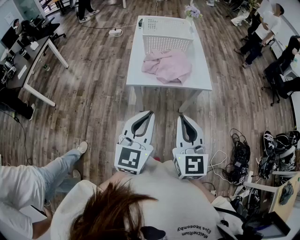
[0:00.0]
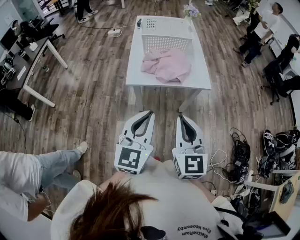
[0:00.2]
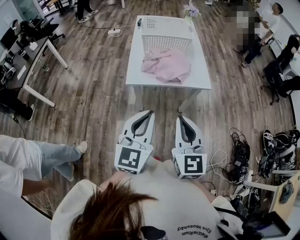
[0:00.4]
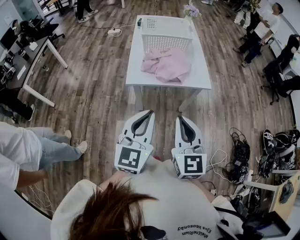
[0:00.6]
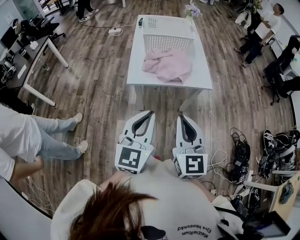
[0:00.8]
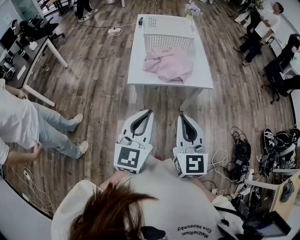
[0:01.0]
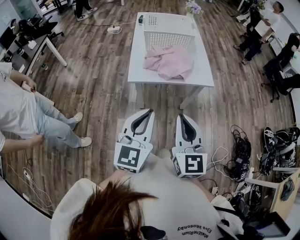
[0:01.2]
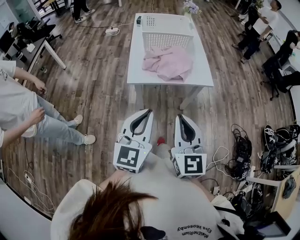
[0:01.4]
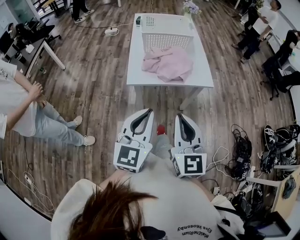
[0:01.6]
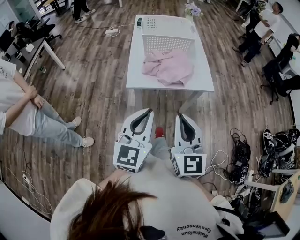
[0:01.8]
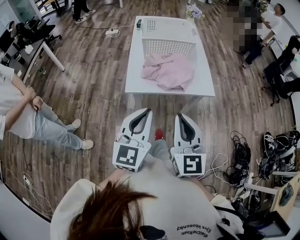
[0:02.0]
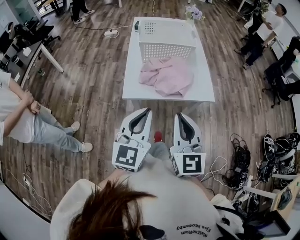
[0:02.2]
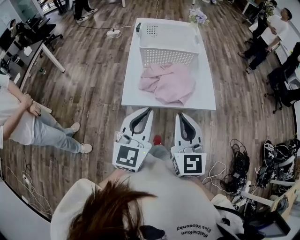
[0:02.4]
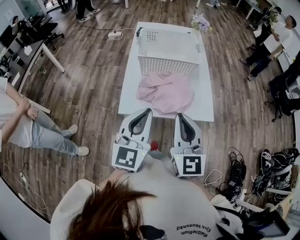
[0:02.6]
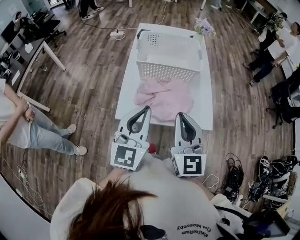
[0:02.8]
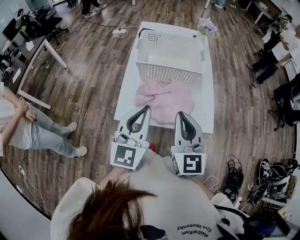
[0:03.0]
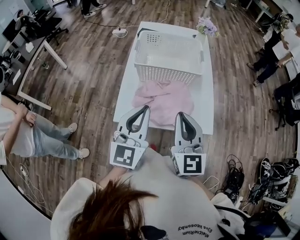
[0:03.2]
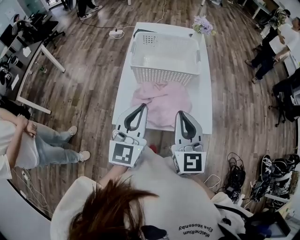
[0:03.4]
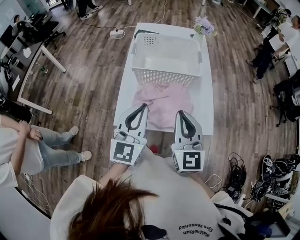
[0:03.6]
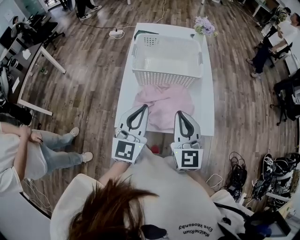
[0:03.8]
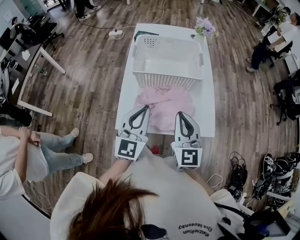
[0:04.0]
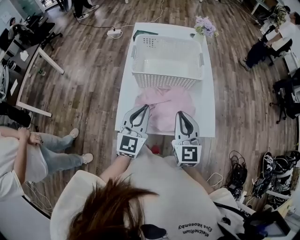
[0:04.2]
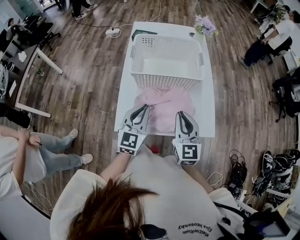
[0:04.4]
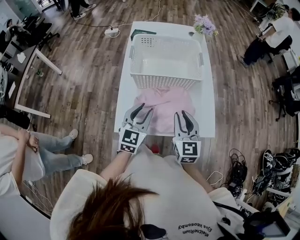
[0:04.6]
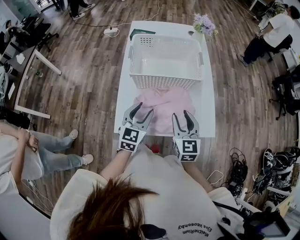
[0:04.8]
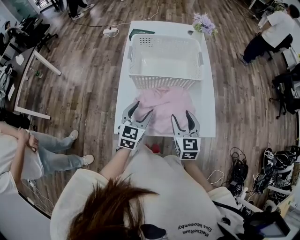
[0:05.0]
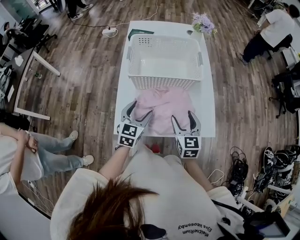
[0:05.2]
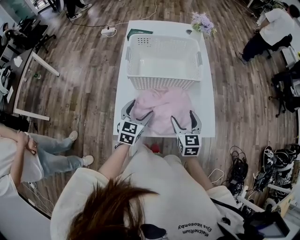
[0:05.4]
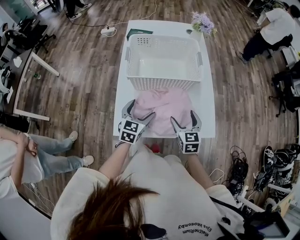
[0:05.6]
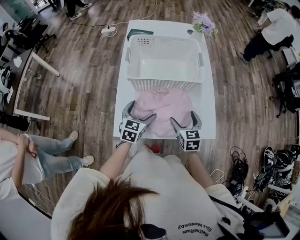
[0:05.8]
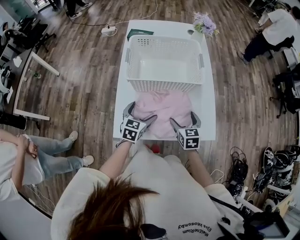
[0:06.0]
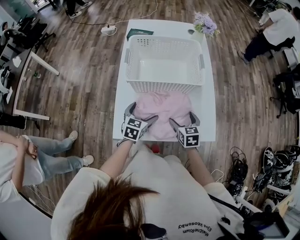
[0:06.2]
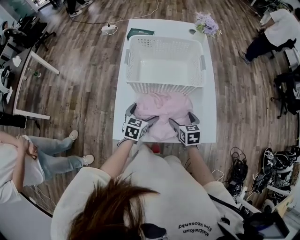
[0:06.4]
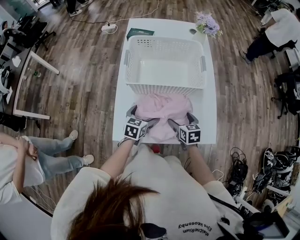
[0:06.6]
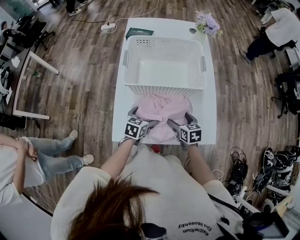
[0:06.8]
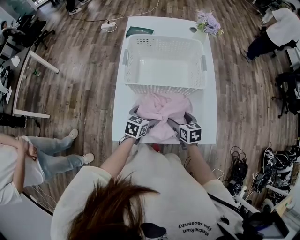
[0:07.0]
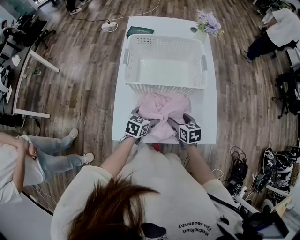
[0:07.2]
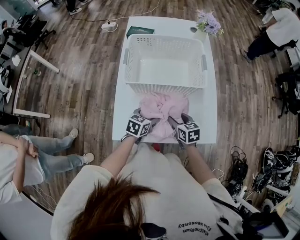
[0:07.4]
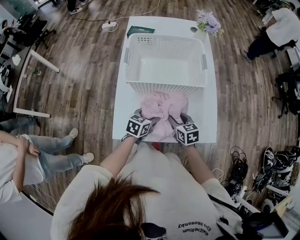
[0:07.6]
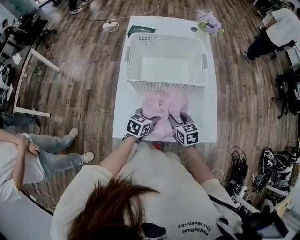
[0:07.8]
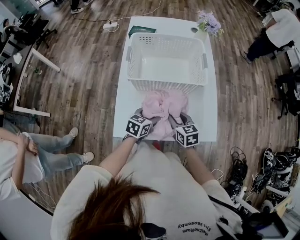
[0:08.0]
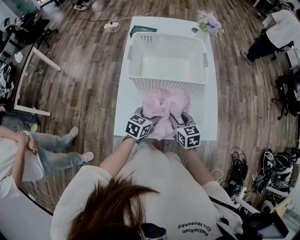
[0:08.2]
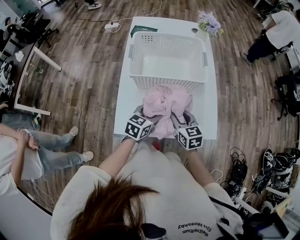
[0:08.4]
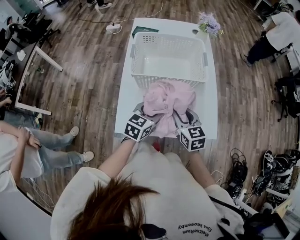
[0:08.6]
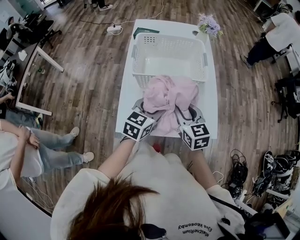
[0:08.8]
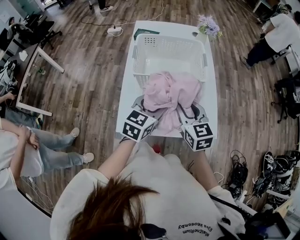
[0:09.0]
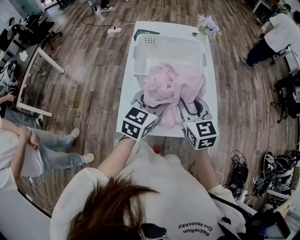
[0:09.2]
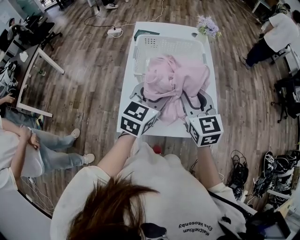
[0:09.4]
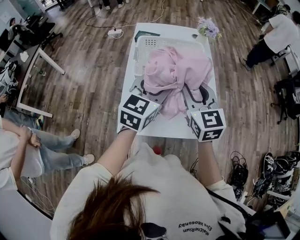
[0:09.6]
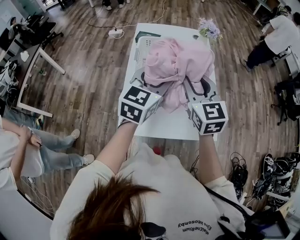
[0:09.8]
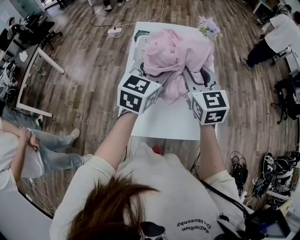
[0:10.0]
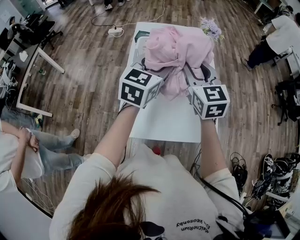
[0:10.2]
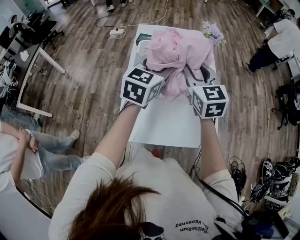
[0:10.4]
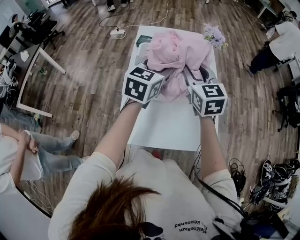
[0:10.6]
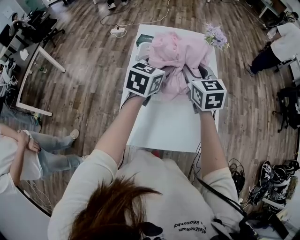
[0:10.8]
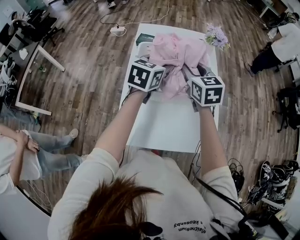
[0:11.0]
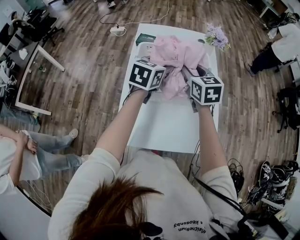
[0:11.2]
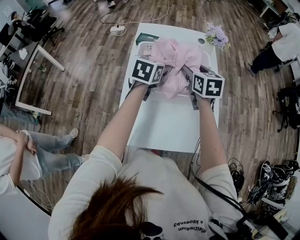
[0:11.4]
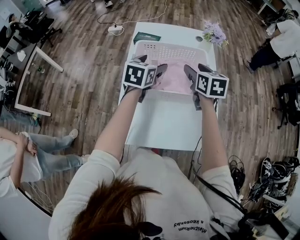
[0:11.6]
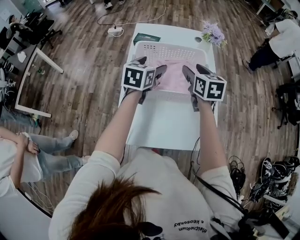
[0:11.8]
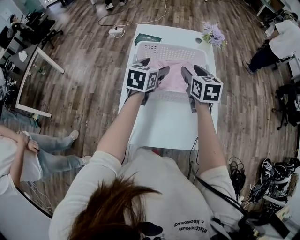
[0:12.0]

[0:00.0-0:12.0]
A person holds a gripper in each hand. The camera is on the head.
0:00.0 to 0:01.6: The grippers stay close to where they were, moving slightly.
0:01.6 to 0:03.0: Both grippers move forward, about 30 cm.
0:03.0 to 0:04.4: Both grippers move downward and forward, roughly 15 cm.
0:04.4 to 0:06.0: Both grippers move downward, about 15 cm. The right gripper changes its angle by roughly 30 degrees, and opens its fingers, while the left gripper swivels some 30 degrees, and opens its fingers.
0:06.0 to 0:07.6: The right gripper ends up about 5 cm from where it was, and closes its fingers, while the left gripper ends up approximately 5 cm from where it was, and closes up.
0:07.6 to 0:09.0: The two grippers go roughly 20 cm upward. The left gripper turns by some 20 degrees. Meanwhile the right gripper swivels some 20 degrees.
0:09.0 to 0:10.4: The grippers both shift forward and upward by approximately 20 cm.
0:10.4 to 0:12.0: The two grippers go approximately 10 cm downward and forward.

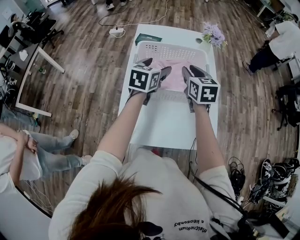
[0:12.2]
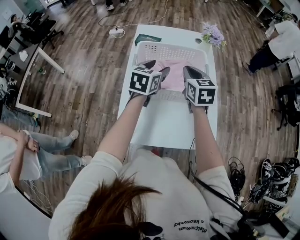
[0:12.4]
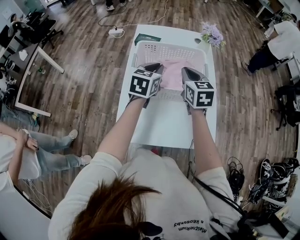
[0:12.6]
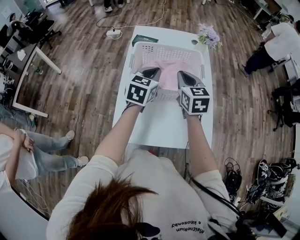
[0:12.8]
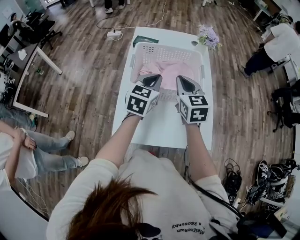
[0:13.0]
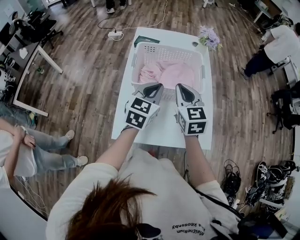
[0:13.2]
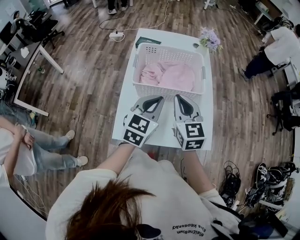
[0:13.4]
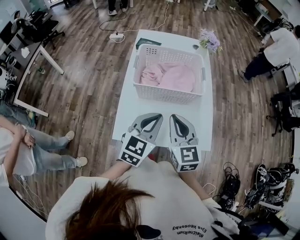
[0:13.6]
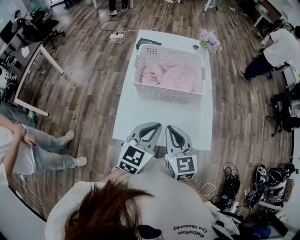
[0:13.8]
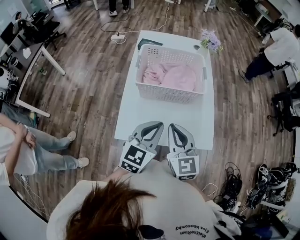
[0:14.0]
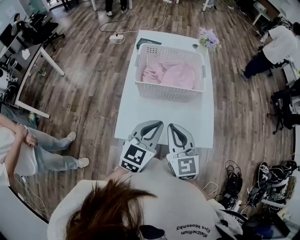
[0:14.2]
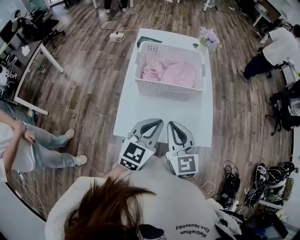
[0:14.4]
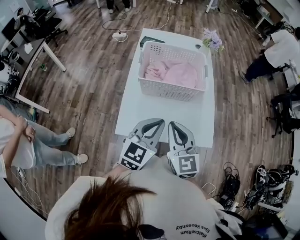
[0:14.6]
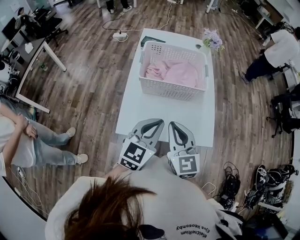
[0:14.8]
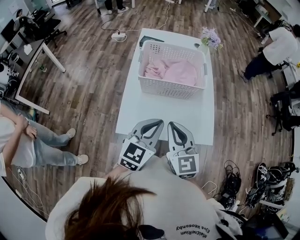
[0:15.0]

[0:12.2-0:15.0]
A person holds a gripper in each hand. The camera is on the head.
0:12.2 to 0:13.6: Both grippers move backward, approximately 25 cm. The left gripper closes up.
0:13.6 to 0:15.0: The grippers both shift backward by roughly 5 cm.

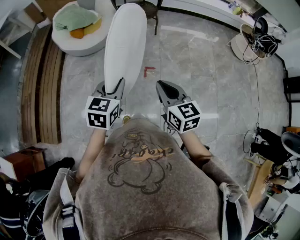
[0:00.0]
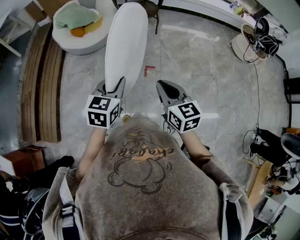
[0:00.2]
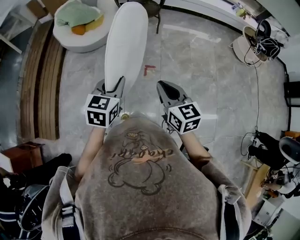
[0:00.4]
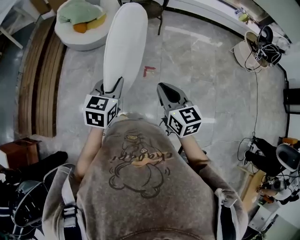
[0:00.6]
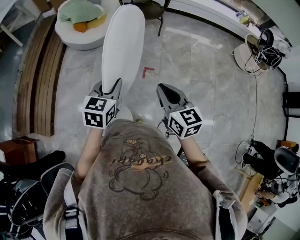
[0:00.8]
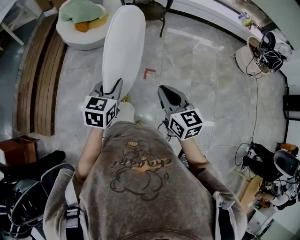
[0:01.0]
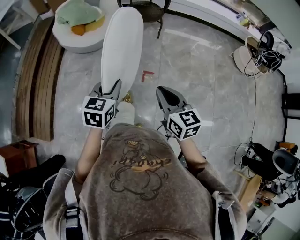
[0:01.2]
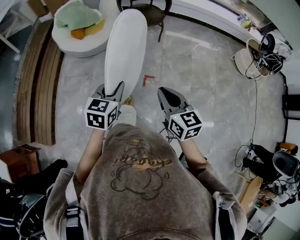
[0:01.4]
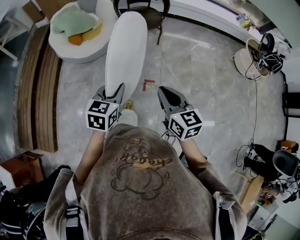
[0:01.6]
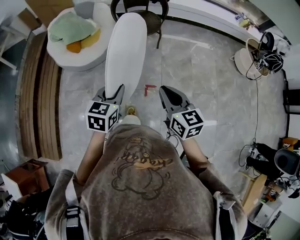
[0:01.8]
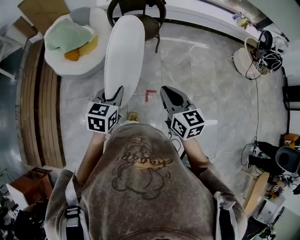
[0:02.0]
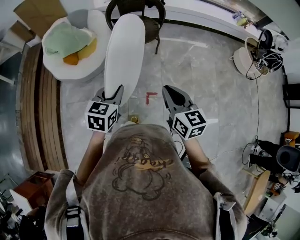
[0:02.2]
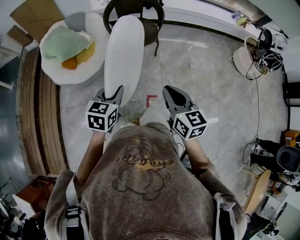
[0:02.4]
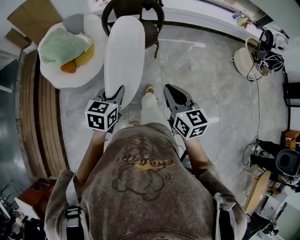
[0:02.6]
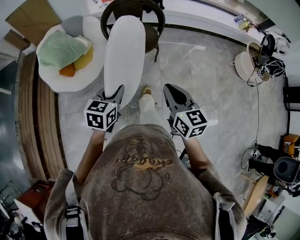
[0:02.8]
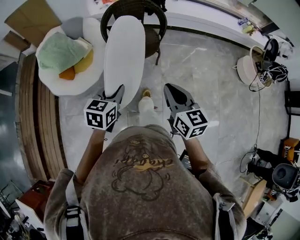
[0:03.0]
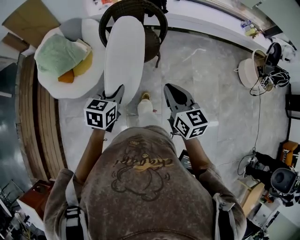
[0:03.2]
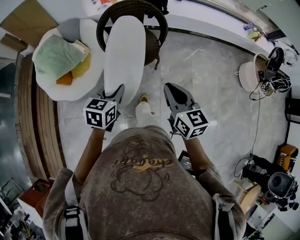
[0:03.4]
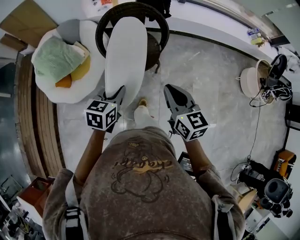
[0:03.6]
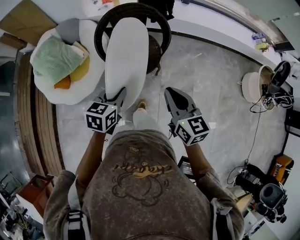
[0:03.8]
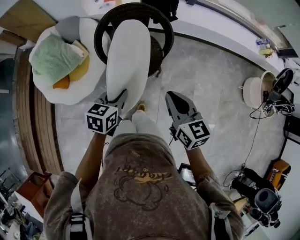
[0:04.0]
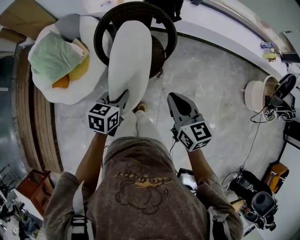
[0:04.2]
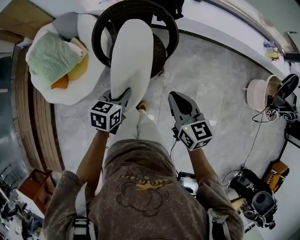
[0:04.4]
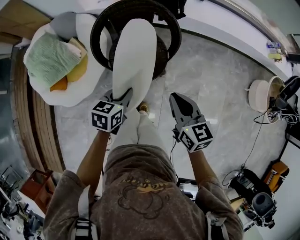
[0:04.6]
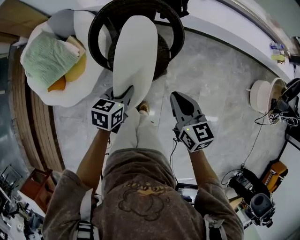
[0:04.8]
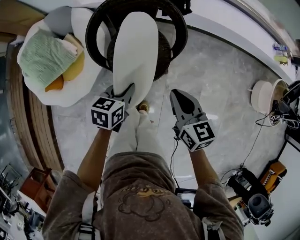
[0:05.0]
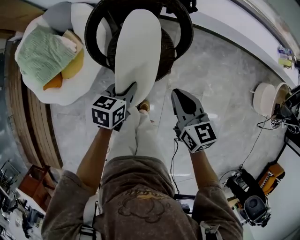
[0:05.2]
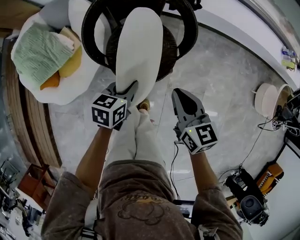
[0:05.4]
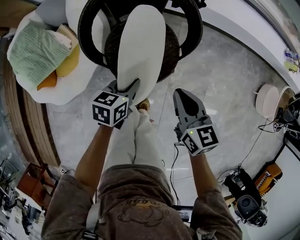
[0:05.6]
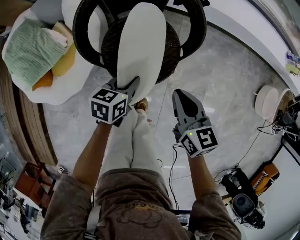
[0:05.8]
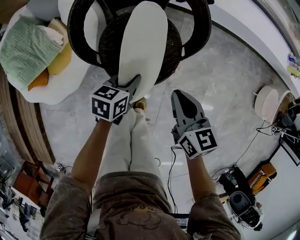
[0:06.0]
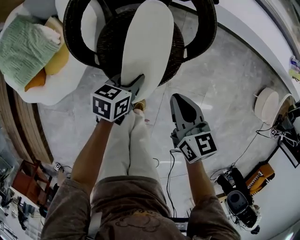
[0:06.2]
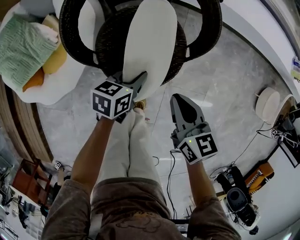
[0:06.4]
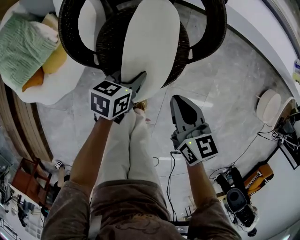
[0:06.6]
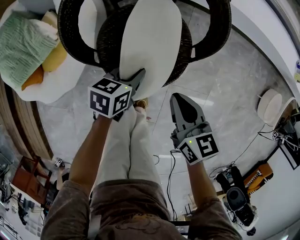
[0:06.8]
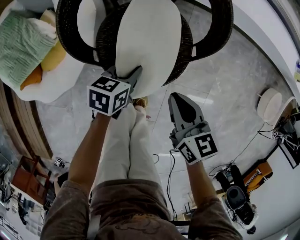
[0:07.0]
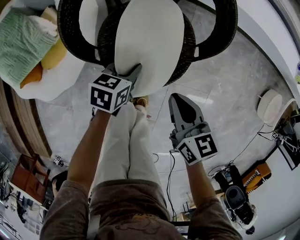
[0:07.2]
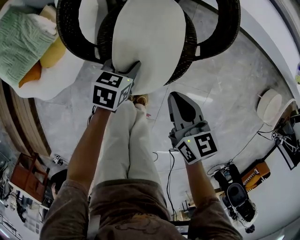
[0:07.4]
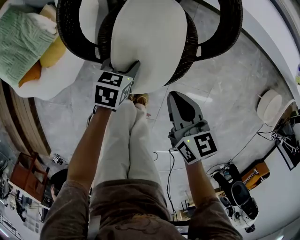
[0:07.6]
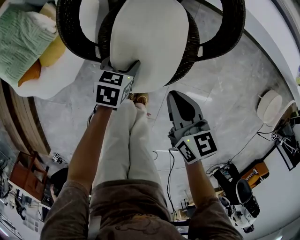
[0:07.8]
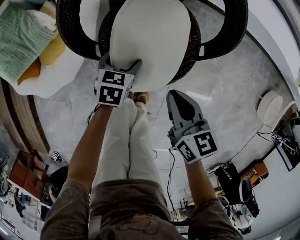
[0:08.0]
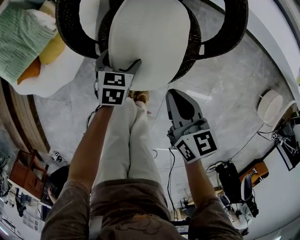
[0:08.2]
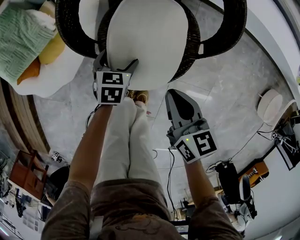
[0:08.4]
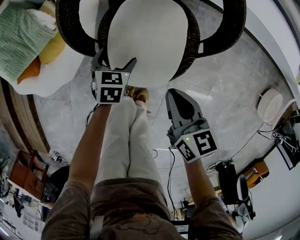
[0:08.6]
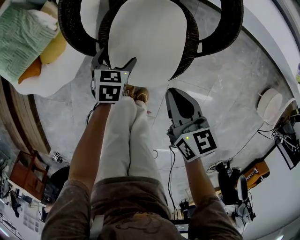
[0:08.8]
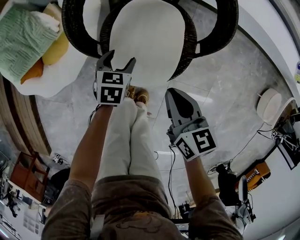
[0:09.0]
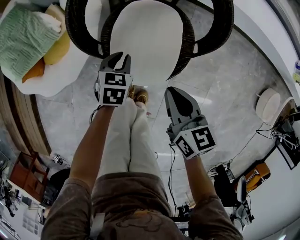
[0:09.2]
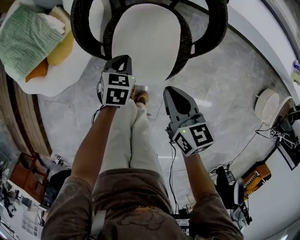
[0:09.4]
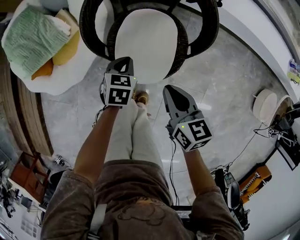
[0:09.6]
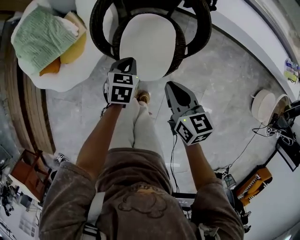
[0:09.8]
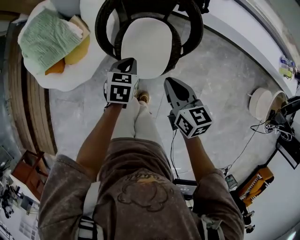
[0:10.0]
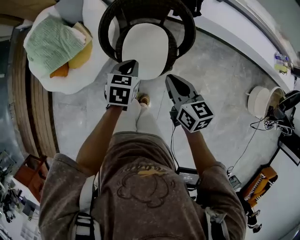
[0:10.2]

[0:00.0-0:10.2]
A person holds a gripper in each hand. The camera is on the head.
0:00.0 to 0:01.4: Both grippers move forward, roughly 10 cm.
0:01.4 to 0:03.0: The two grippers go about 40 cm forward.
0:03.0 to 0:04.4: The grippers both shift forward by some 30 cm.
0:04.4 to 0:05.8: Both grippers move downward and forward, about 20 cm.
0:05.8 to 0:07.2: Both grippers travel together downward, approximately 10 cm.
0:07.2 to 0:08.8: The left gripper travels to the left by approximately 5 cm, turns by roughly 20 degrees, and opens its fingers.
0:08.8 to 0:10.2: Both grippers travel together upward, approximately 25 cm. The left gripper closes up.
